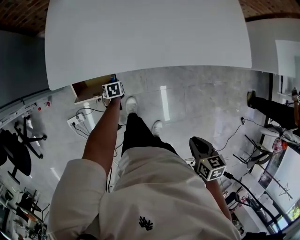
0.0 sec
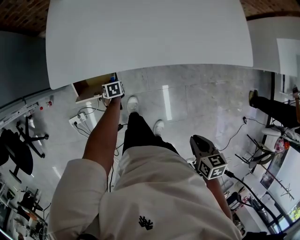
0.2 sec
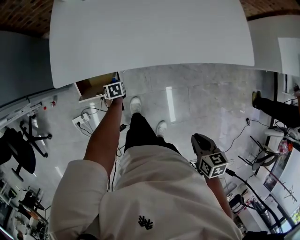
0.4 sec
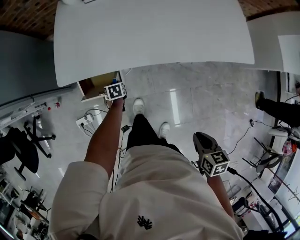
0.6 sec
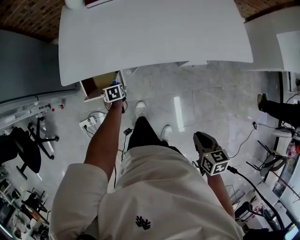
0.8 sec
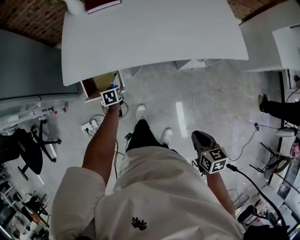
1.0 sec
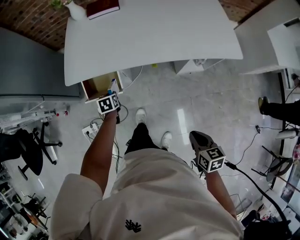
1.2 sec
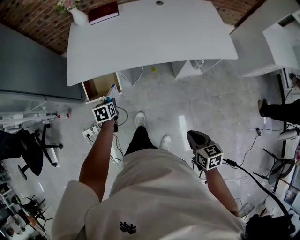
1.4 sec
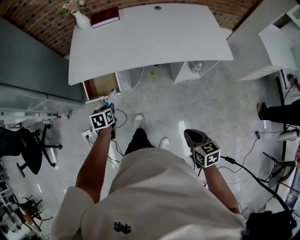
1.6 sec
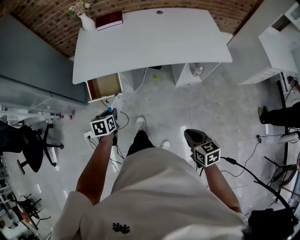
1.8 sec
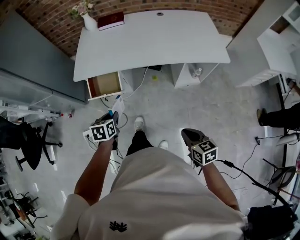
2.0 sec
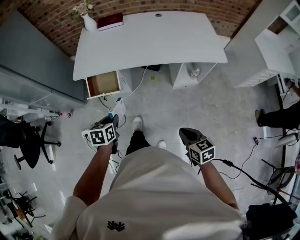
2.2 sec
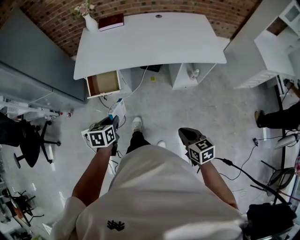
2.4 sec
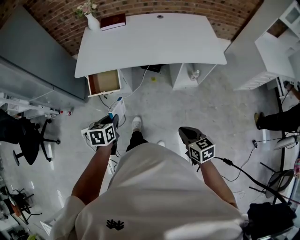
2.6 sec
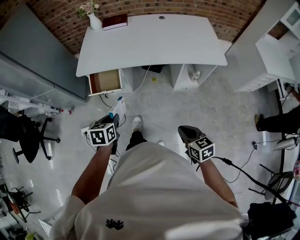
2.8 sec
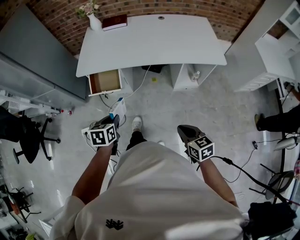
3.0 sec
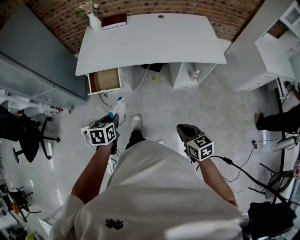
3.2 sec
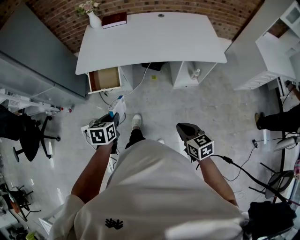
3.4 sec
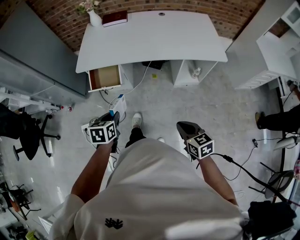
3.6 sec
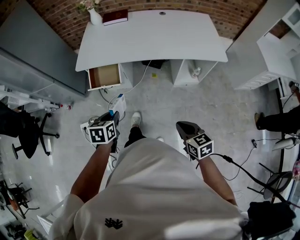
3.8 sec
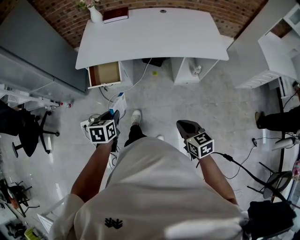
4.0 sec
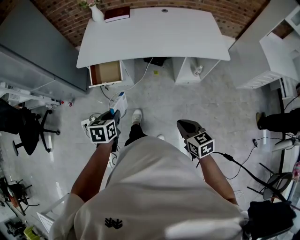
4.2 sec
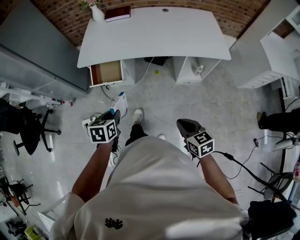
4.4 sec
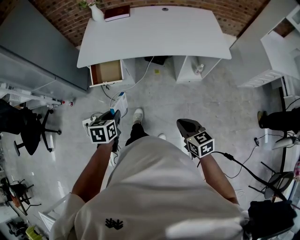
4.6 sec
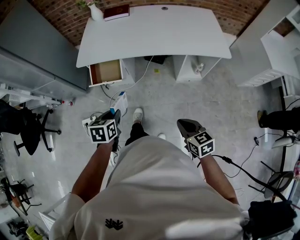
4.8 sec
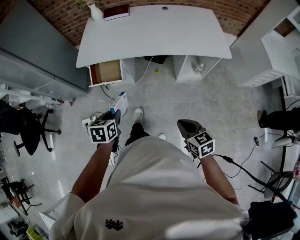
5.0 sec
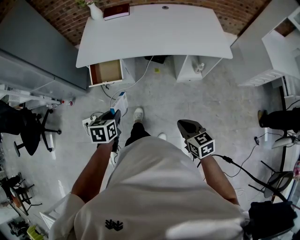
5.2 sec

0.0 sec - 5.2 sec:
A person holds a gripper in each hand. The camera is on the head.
0.0 sec - 1.8 sec: The left gripper moves upward and backward, some 50 cm; the right gripper shifts approximately 20 cm backward and upward, and changes its angle by some 30 degrees.
1.8 sec - 3.4 sec: The left gripper goes about 15 cm backward and upward, while the right gripper goes approximately 5 cm backward.
3.4 sec - 5.2 sec: The grippers stay close to where they were, moving slightly.

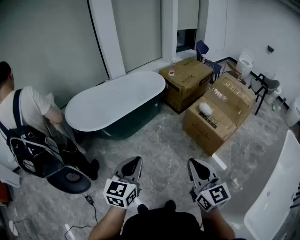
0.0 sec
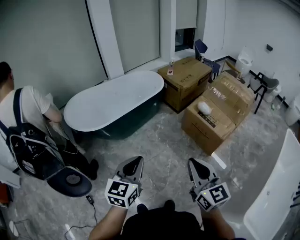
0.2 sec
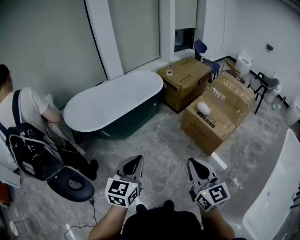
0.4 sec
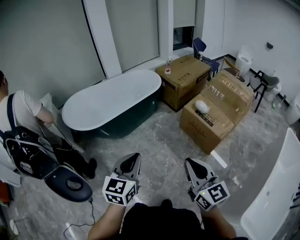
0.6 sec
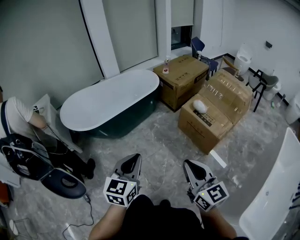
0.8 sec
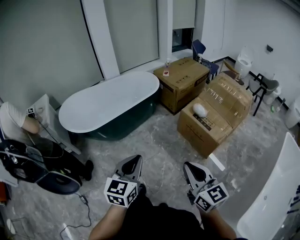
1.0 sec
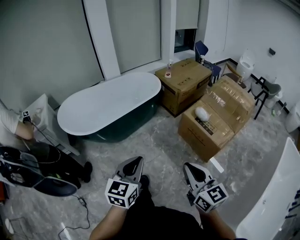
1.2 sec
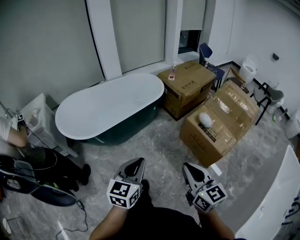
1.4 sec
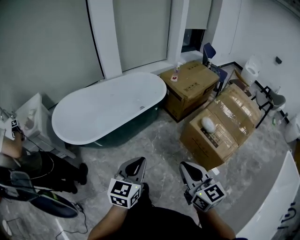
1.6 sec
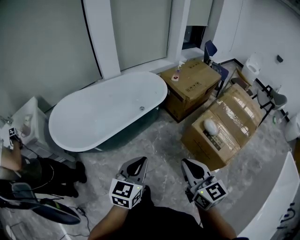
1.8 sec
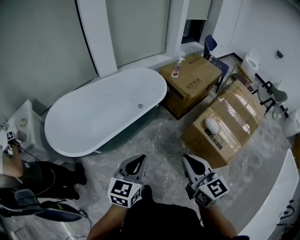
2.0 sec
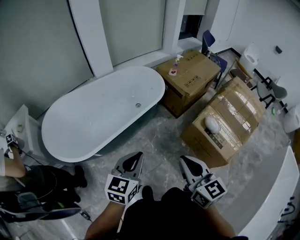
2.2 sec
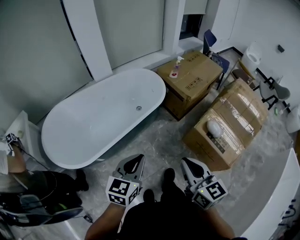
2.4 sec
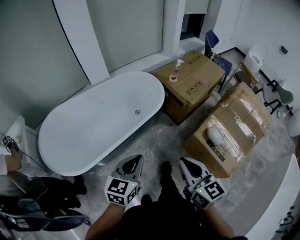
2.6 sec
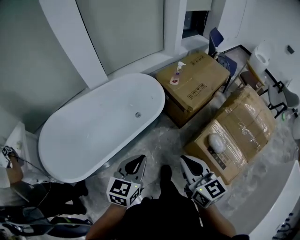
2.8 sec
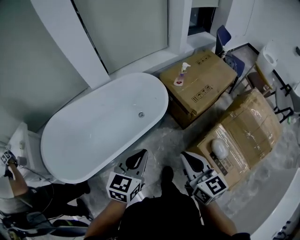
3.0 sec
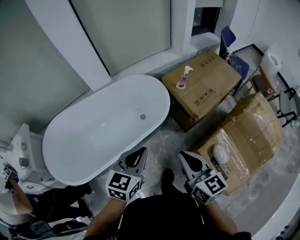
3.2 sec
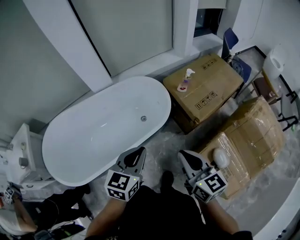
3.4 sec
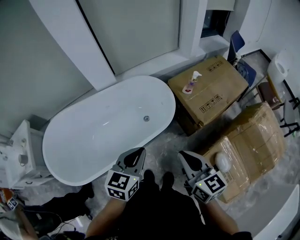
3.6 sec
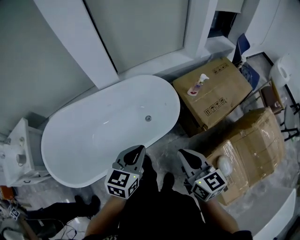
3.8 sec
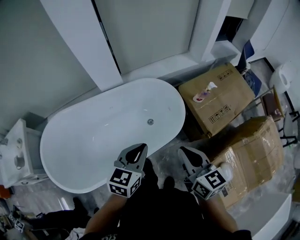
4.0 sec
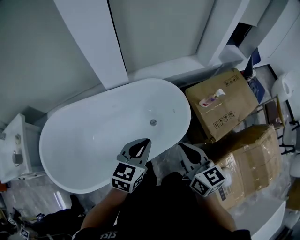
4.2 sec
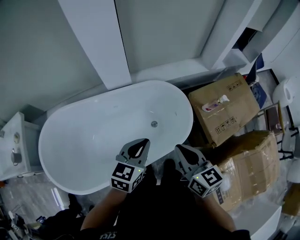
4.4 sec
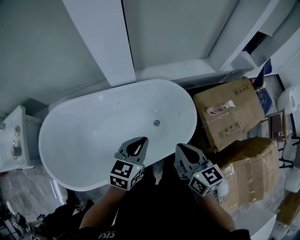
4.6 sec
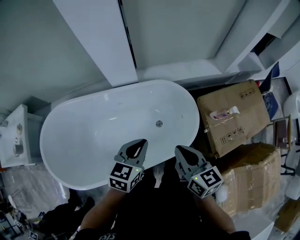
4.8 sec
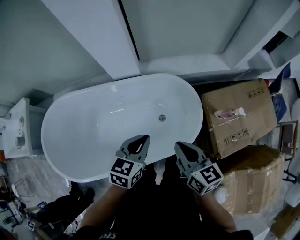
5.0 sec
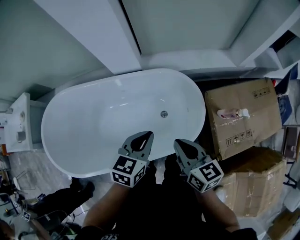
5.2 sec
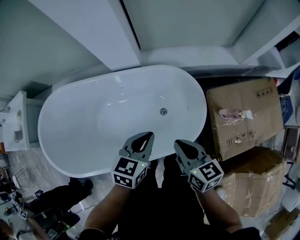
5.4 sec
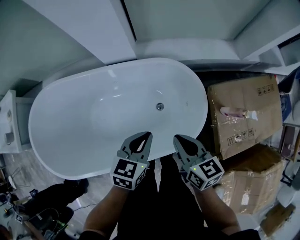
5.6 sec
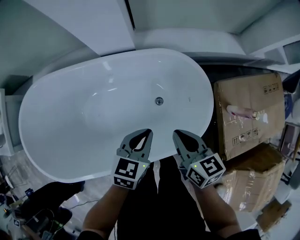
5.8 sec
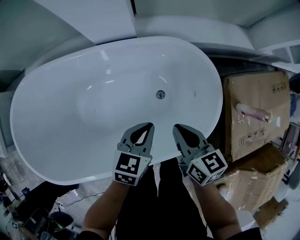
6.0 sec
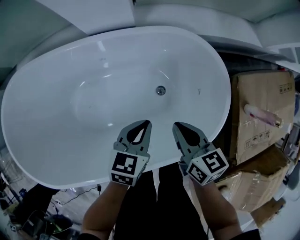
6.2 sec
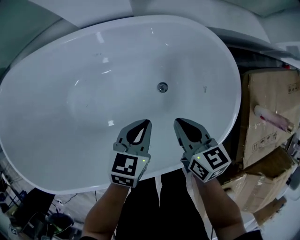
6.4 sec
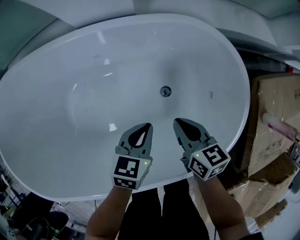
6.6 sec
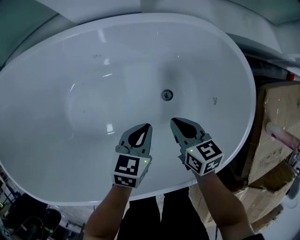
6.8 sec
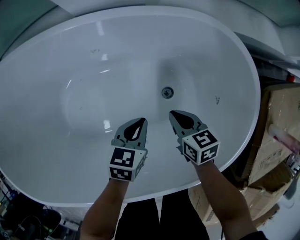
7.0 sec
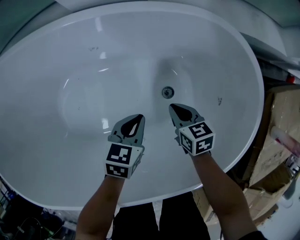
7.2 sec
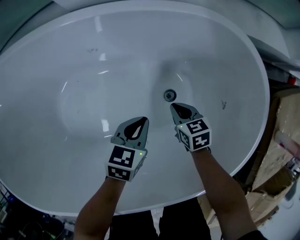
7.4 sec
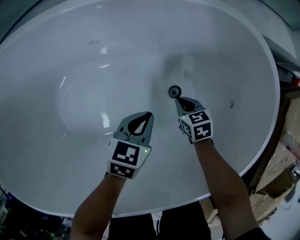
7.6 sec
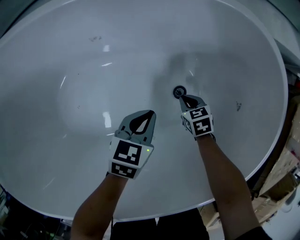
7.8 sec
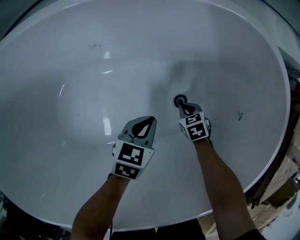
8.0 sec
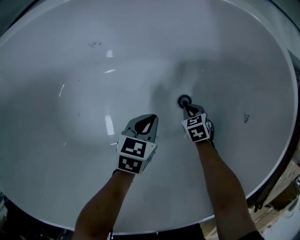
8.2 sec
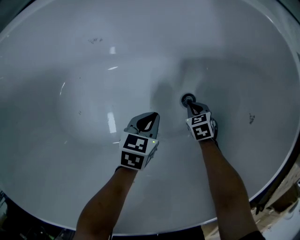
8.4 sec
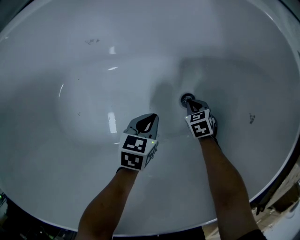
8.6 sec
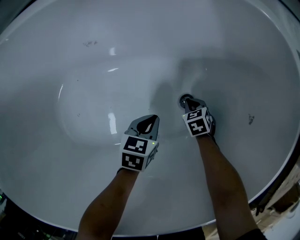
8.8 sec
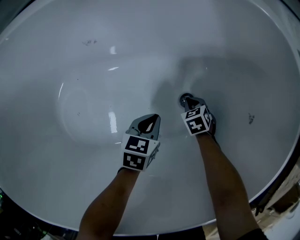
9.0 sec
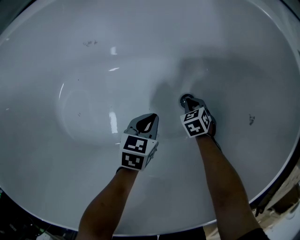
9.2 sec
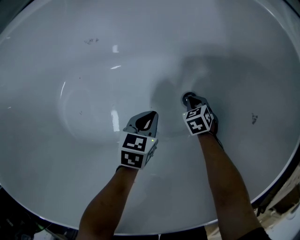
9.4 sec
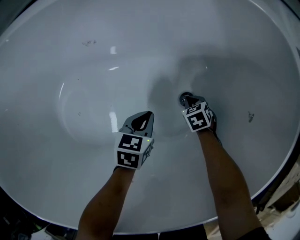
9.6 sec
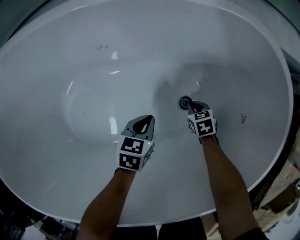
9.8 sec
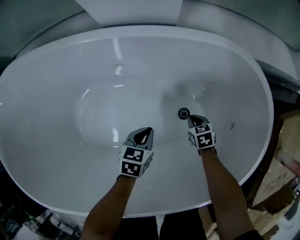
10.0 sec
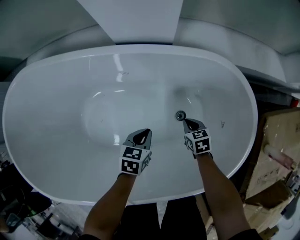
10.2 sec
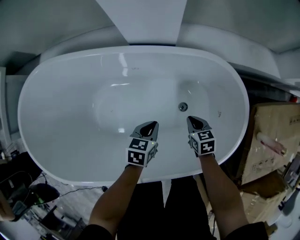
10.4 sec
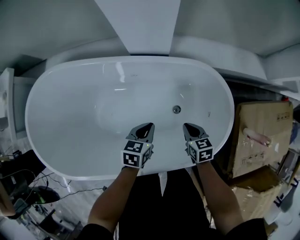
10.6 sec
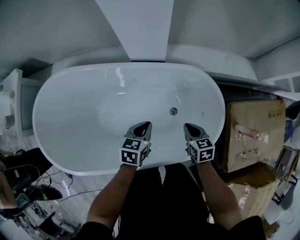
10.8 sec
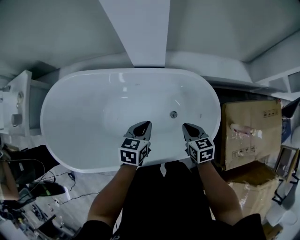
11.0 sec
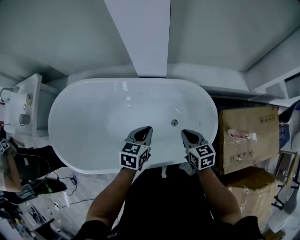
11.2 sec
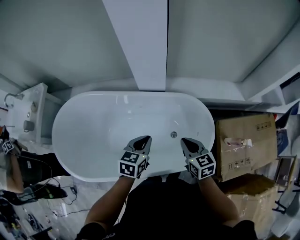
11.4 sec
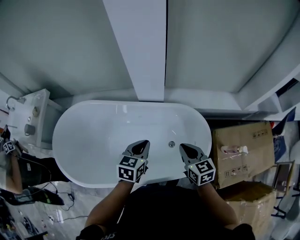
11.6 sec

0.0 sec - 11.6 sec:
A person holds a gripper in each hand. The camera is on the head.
0.0 sec - 1.4 sec: The grippers both shift forward by about 15 cm.
1.4 sec - 2.8 sec: The pair of grippers is taken forward, roughly 50 cm.
2.8 sec - 4.4 sec: The two grippers go some 35 cm forward.
4.4 sec - 5.8 sec: The two grippers go some 30 cm downward and forward. The right gripper rotates roughly 20 degrees.
5.8 sec - 7.2 sec: The two grippers go some 40 cm downward. The right gripper swivels roughly 20 degrees.
7.2 sec - 8.8 sec: The grippers both shift downward by roughly 20 cm. The right gripper turns by about 30 degrees.
8.8 sec - 10.2 sec: Both grippers move upward, about 25 cm.
10.2 sec - 11.6 sec: Both grippers move upward, about 60 cm. The left gripper swivels some 20 degrees; the right gripper tips its fingers upward by roughly 30 degrees.

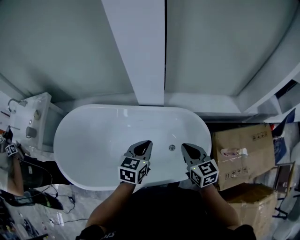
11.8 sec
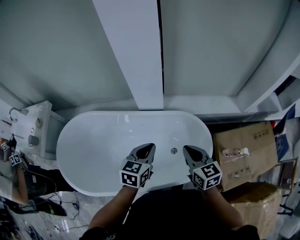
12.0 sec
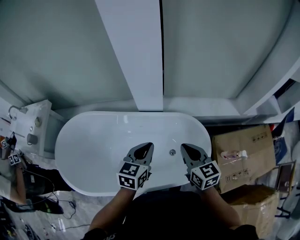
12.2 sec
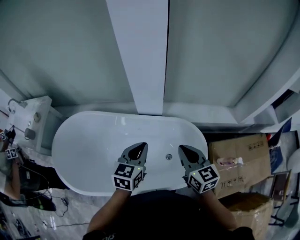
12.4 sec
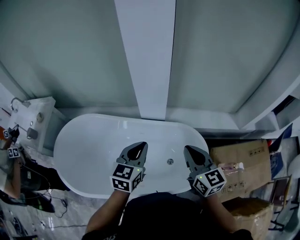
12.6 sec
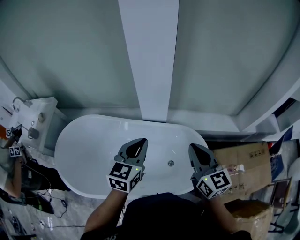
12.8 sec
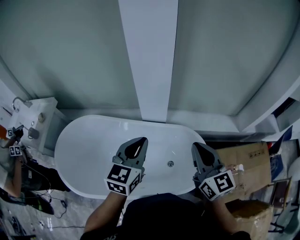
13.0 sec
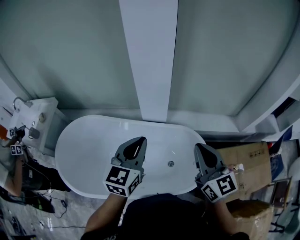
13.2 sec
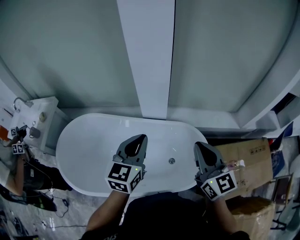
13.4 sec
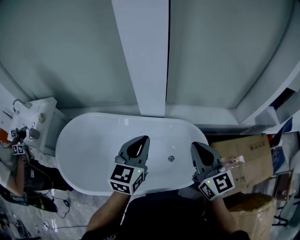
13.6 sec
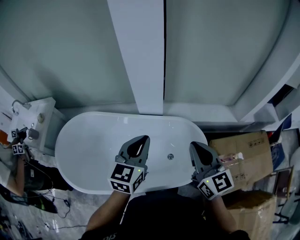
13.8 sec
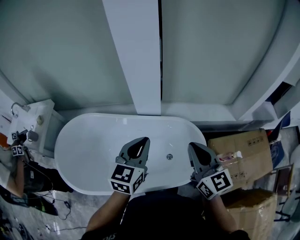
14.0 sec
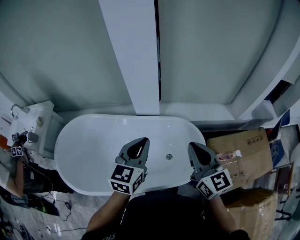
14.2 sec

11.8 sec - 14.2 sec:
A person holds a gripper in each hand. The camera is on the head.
11.8 sec - 13.0 sec: The grippers both shift upward by approximately 15 cm. The right gripper swivels roughly 20 degrees.
13.0 sec - 14.2 sec: The left gripper heads to the right and backward, covering roughly 5 cm. The right gripper shifts approximately 5 cm backward.

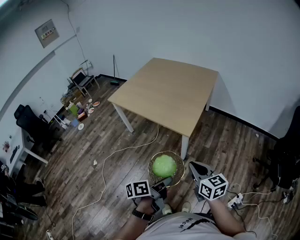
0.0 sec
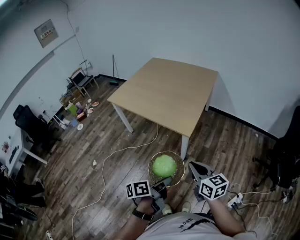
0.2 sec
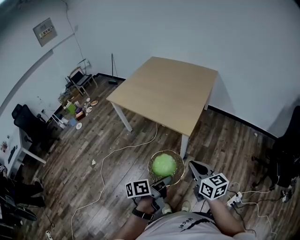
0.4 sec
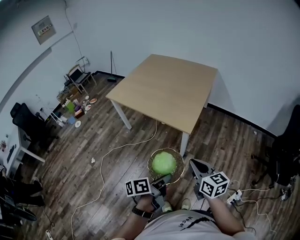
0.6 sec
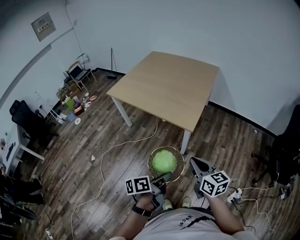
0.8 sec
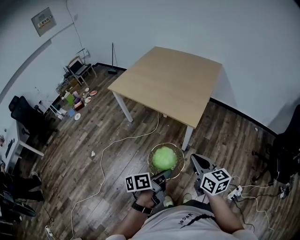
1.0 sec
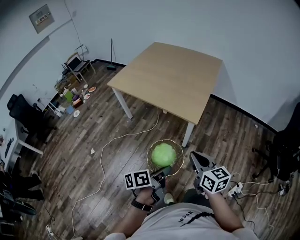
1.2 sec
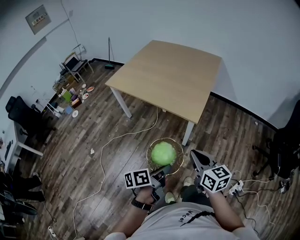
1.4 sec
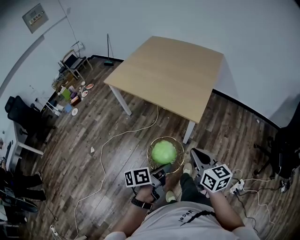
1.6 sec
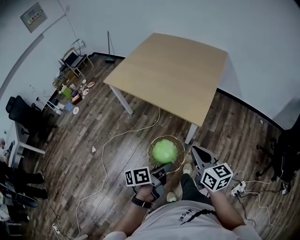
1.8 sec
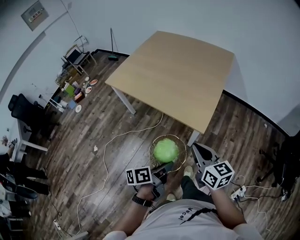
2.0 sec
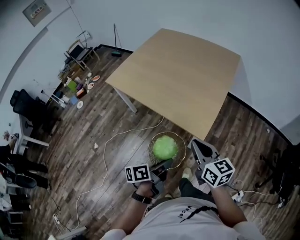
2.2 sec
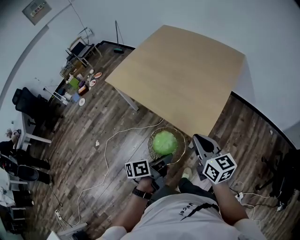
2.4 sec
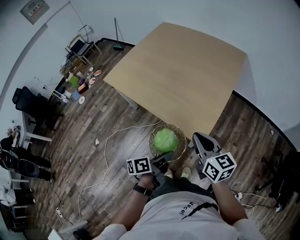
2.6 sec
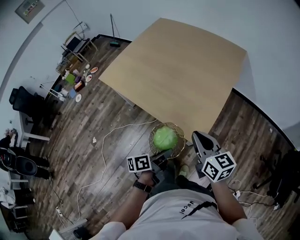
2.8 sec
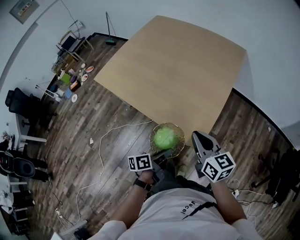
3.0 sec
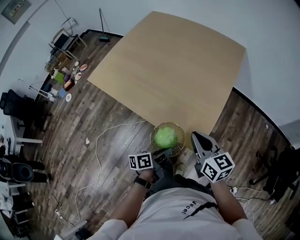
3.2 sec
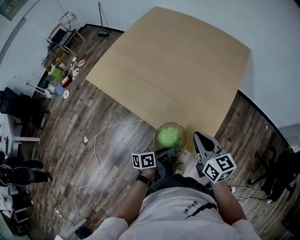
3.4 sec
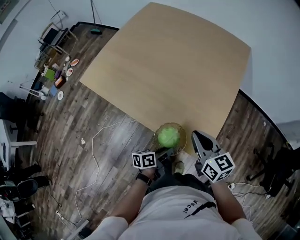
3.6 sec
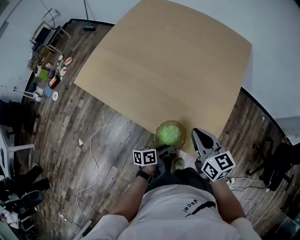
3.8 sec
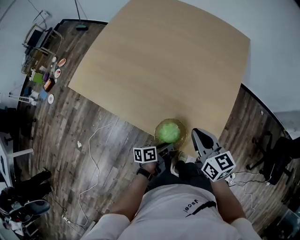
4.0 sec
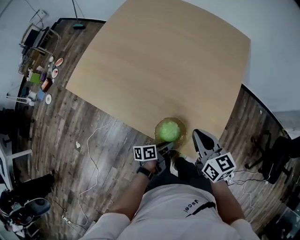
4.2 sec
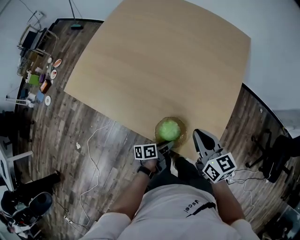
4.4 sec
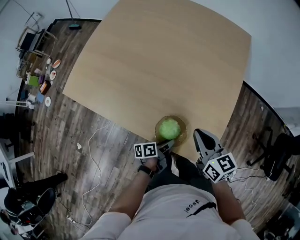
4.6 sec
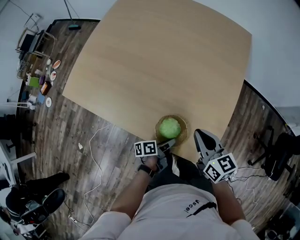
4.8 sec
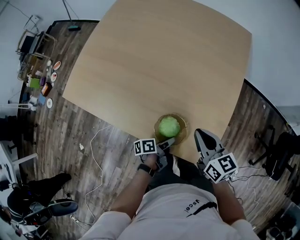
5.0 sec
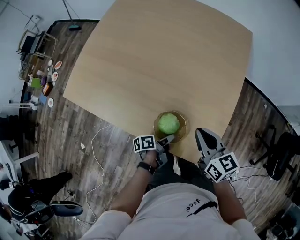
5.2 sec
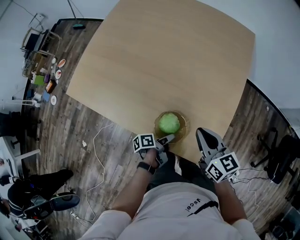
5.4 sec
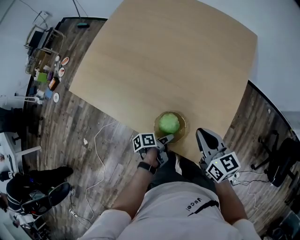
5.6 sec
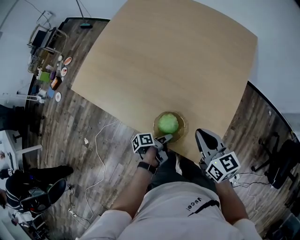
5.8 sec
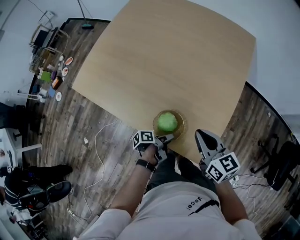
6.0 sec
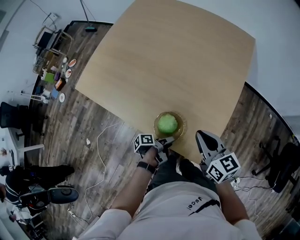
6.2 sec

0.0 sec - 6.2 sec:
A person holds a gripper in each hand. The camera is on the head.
0.0 sec - 1.6 sec: The right gripper moves roughly 10 cm.
1.6 sec - 3.2 sec: The right gripper shifts by approximately 35 cm.
3.2 sec - 4.6 sec: The right gripper moves approximately 15 cm.
